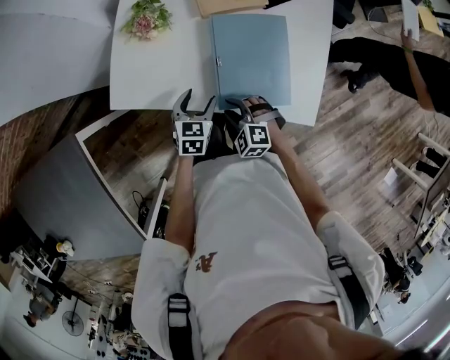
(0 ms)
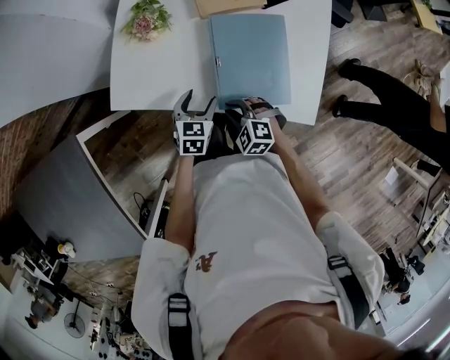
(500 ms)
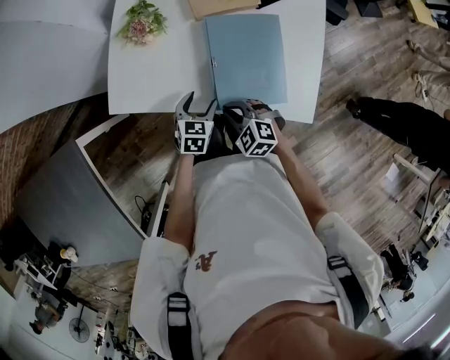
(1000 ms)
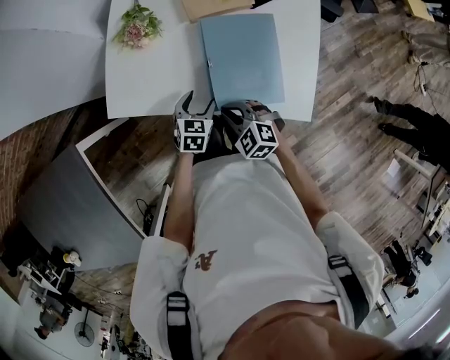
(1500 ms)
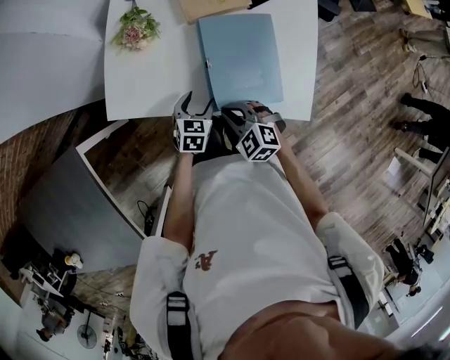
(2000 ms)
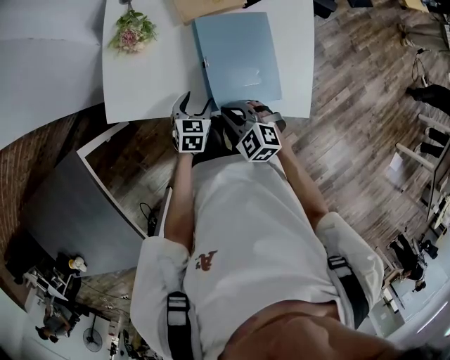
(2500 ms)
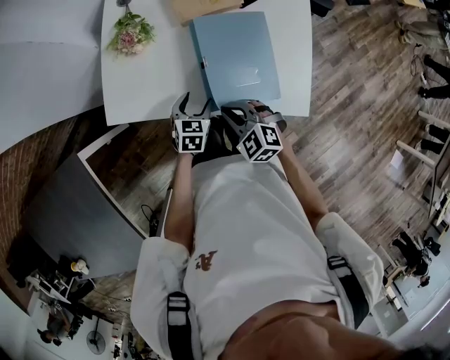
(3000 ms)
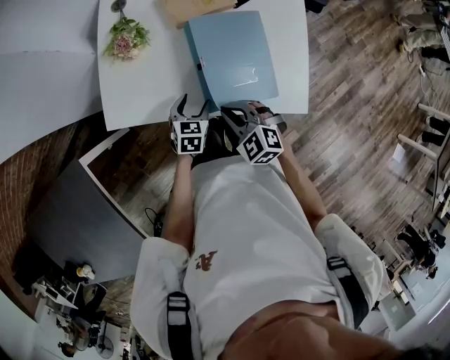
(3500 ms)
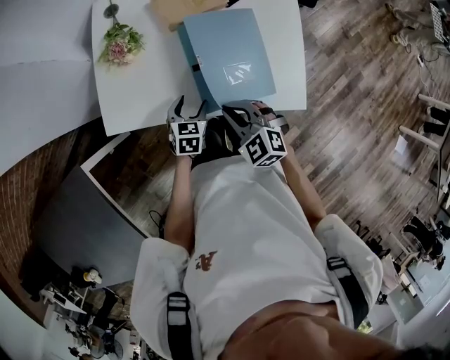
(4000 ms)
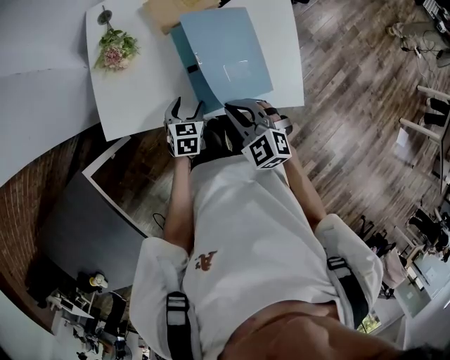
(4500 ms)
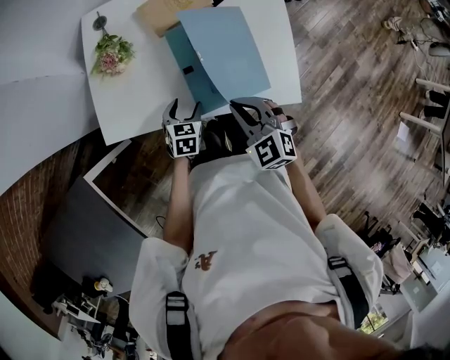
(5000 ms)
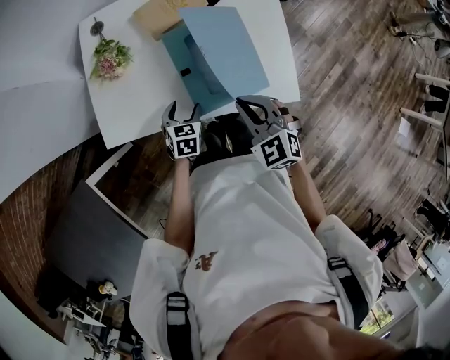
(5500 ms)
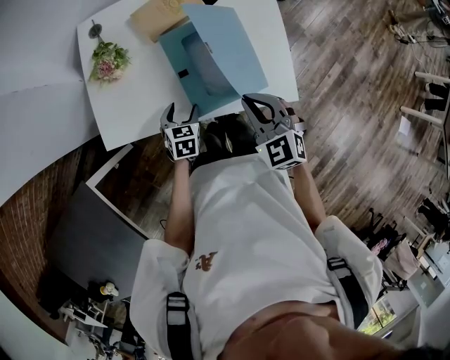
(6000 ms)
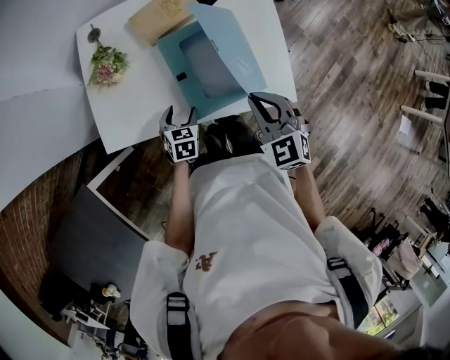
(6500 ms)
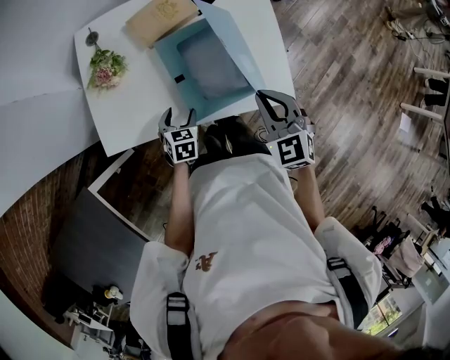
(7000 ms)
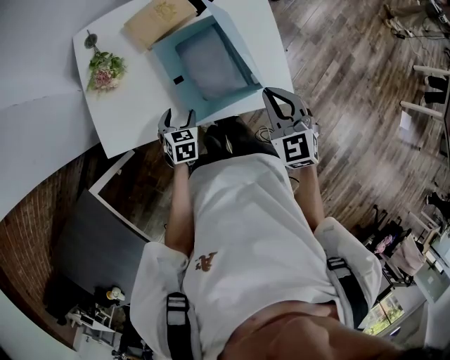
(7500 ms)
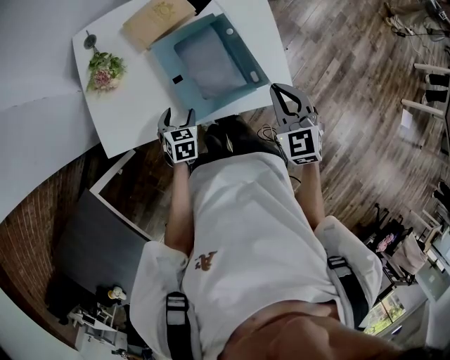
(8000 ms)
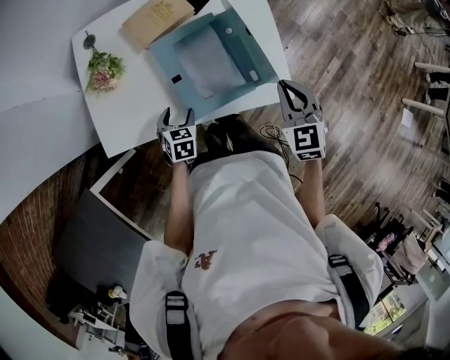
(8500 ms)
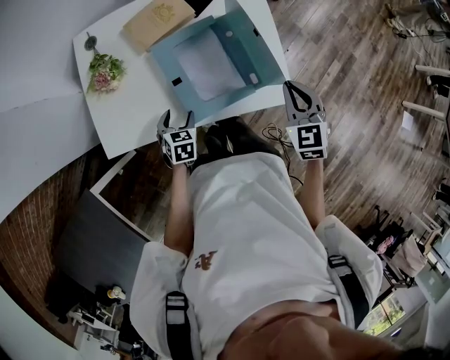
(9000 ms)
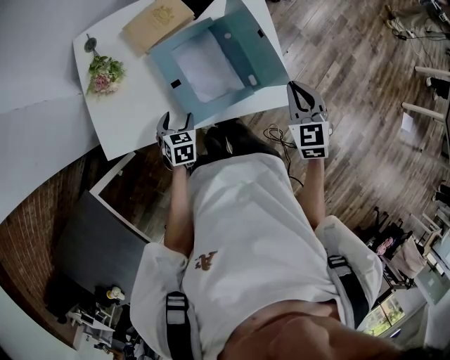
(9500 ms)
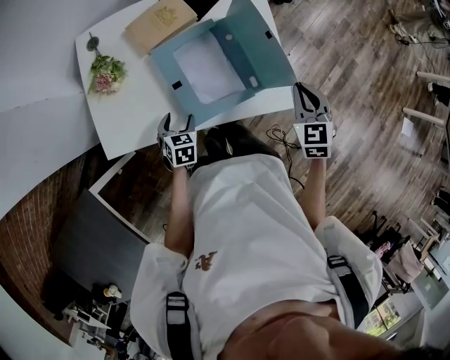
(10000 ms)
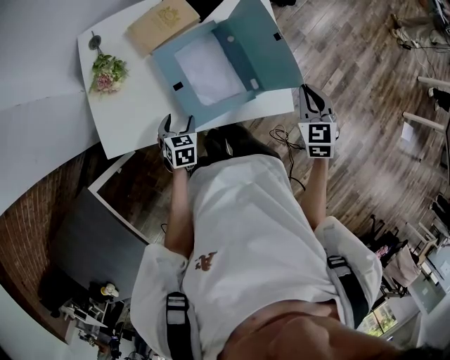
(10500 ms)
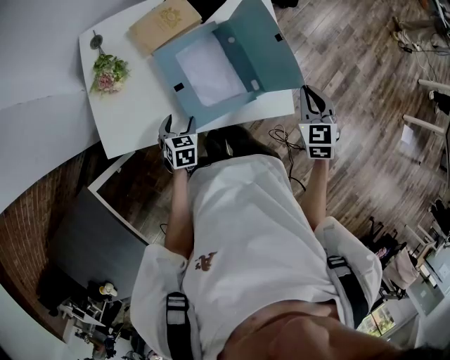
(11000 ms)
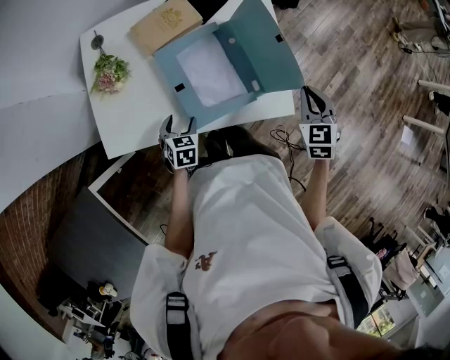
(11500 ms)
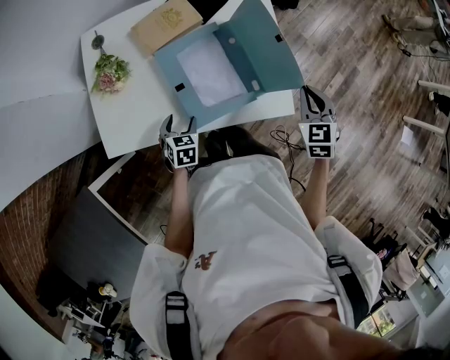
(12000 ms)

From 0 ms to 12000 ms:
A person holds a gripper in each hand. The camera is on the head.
From 0 ms to 2000 ms: The right gripper shifts some 5 cm upward, and closes up.
From 2000 ms to 4000 ms: The right gripper moves some 5 cm.
From 4000 ms to 6000 ms: The right gripper moves to the right and upward, some 10 cm.
From 6000 ms to 8000 ms: The right gripper travels to the right by some 10 cm.
From 8000 ms to 10000 ms: The right gripper moves to the right, roughly 10 cm.
From 10000 ms to 12000 ms: The grippers move only a little.

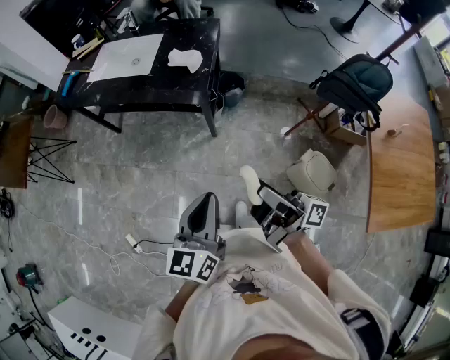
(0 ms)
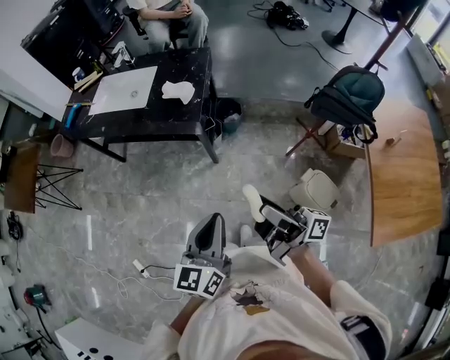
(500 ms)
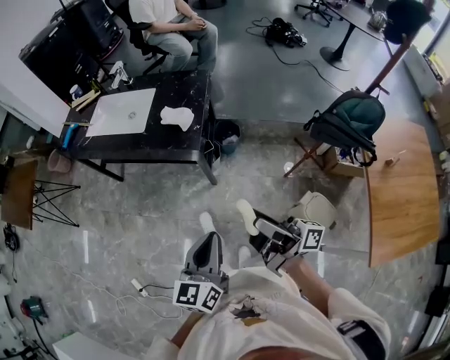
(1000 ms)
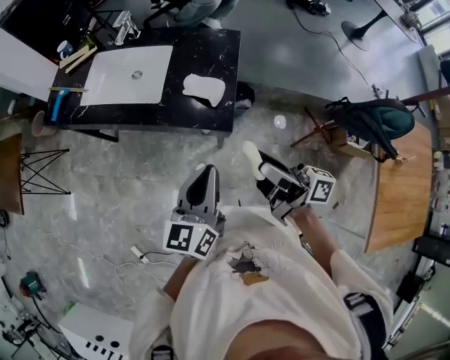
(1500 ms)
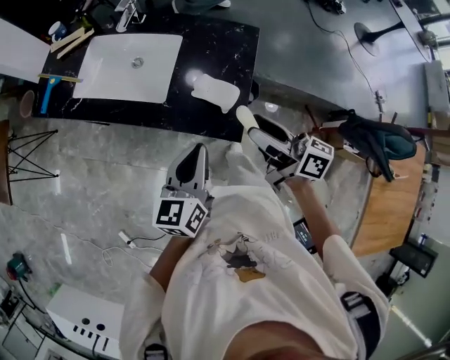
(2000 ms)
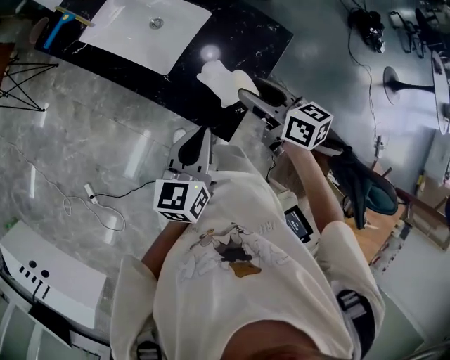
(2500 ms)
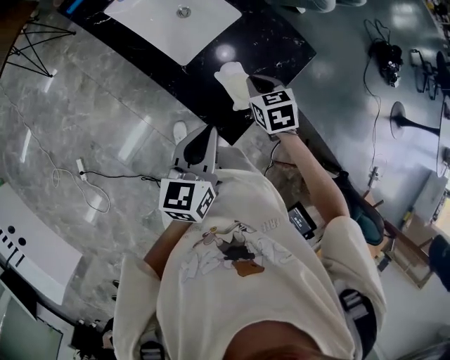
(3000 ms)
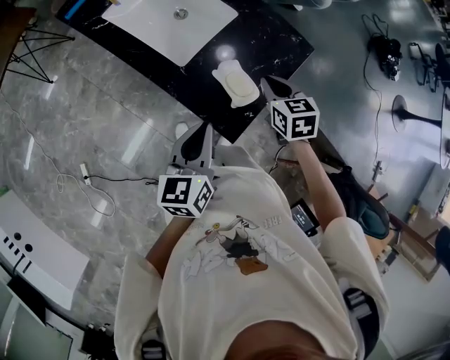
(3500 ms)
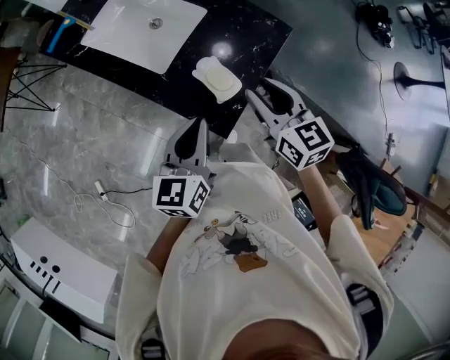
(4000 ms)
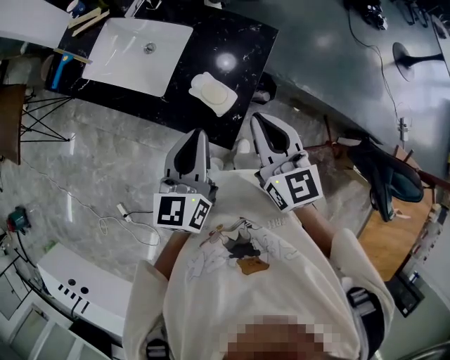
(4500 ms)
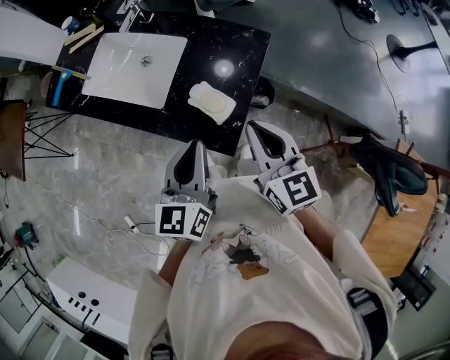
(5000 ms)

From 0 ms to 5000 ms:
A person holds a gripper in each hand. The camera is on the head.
From 0 ms to 2500 ms: The two grippers travel together, forward, about 50 cm. The right gripper points its fingers about 50 degrees further downward. Meanwhile the left gripper changes its angle by some 20 degrees.
From 2500 ms to 5000 ms: The left gripper is displaced upward by about 5 cm, while the right gripper shifts approximately 10 cm backward and upward, rotates some 30 degrees, and closes.

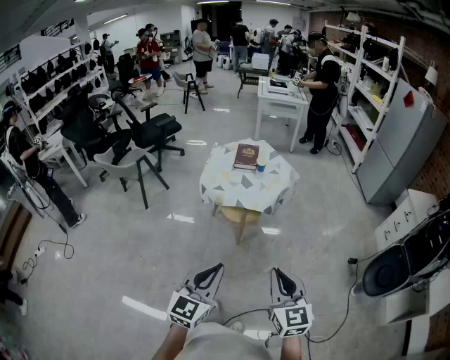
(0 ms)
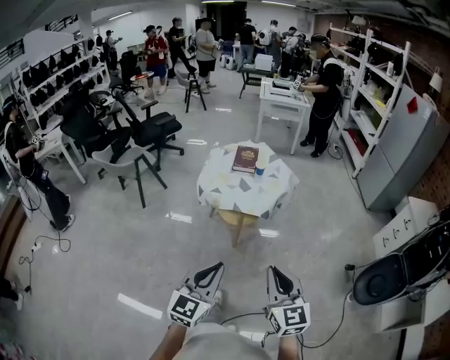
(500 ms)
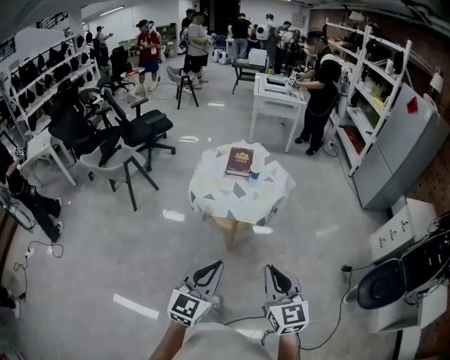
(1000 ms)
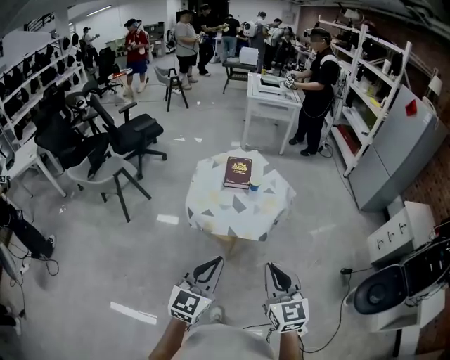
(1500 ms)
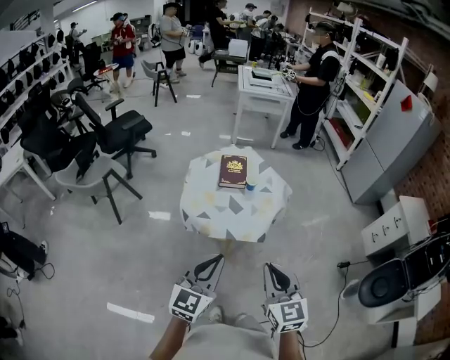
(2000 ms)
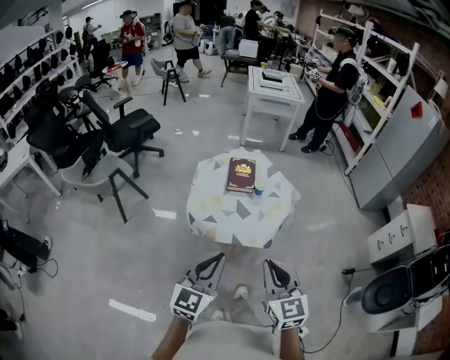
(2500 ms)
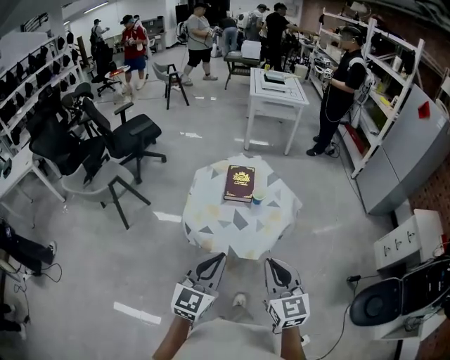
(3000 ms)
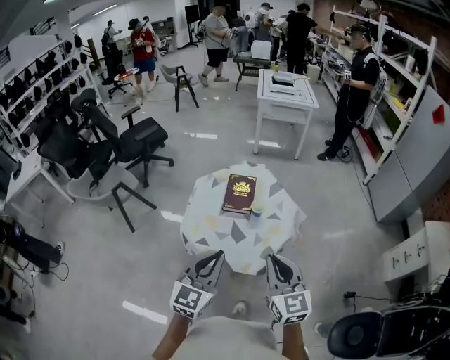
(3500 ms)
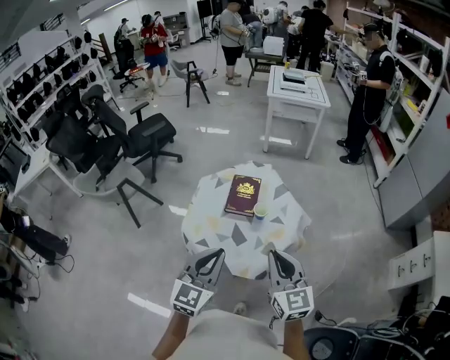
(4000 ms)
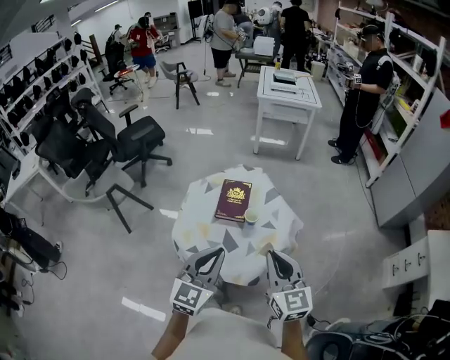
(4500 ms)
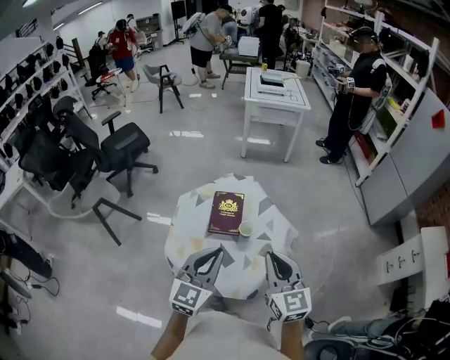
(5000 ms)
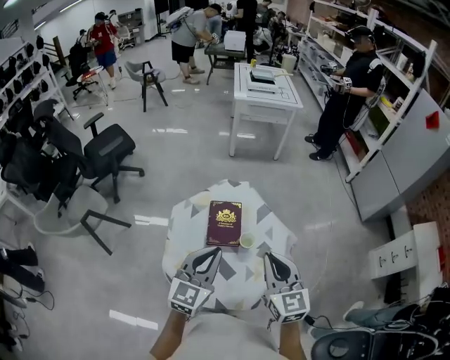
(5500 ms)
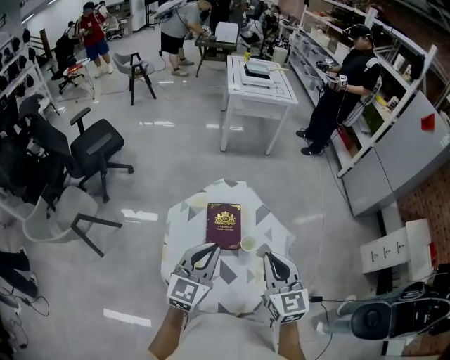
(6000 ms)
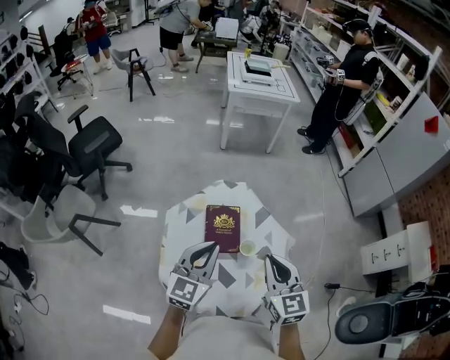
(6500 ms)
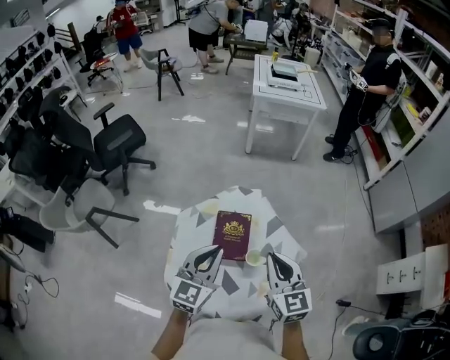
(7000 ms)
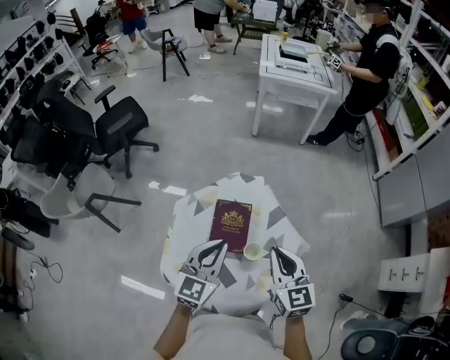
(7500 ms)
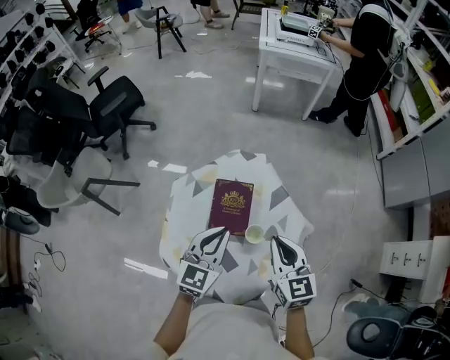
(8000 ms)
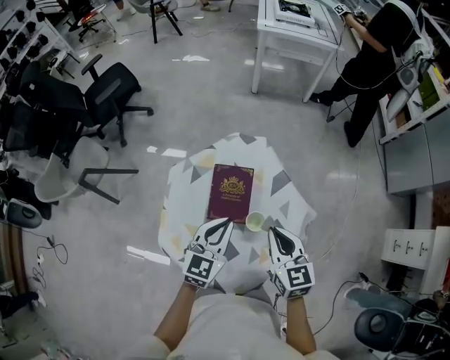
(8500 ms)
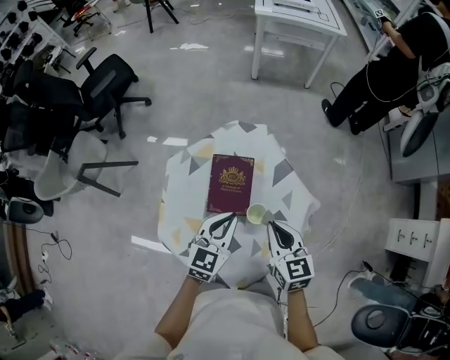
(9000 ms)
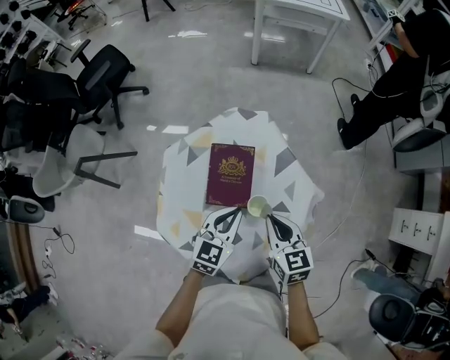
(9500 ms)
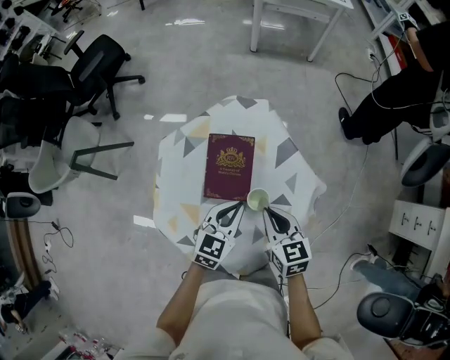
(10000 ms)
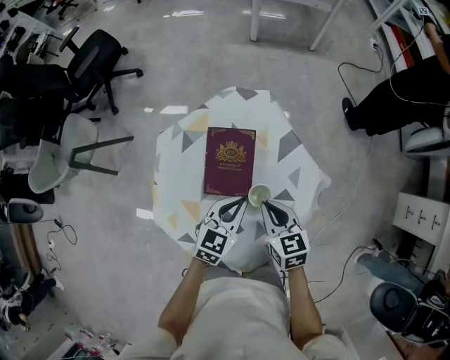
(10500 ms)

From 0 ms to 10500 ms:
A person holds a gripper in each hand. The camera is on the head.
From 0 ms to 2000 ms: The grippers both shift forward by roughly 25 cm.
From 2000 ms to 4000 ms: Both grippers travel together forward, about 25 cm.
From 4000 ms to 6500 ms: The two grippers go some 25 cm forward.
From 6500 ms to 8500 ms: The right gripper goes approximately 15 cm downward and forward. Meanwhile the left gripper travels downward and to the right by roughly 15 cm.
From 8500 ms to 10500 ms: Both grippers move downward, roughly 15 cm.
